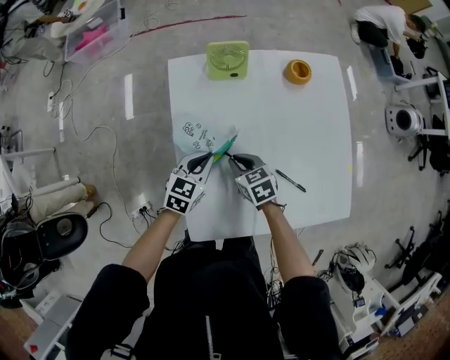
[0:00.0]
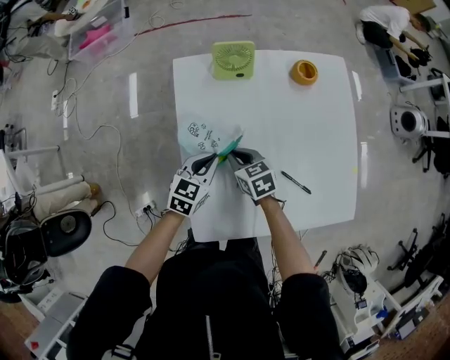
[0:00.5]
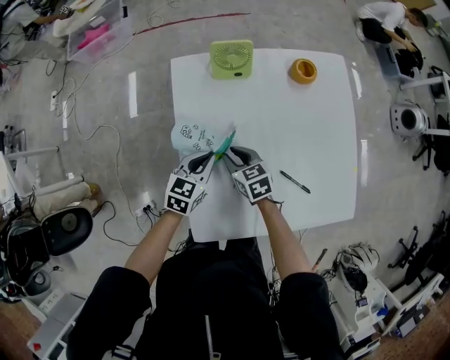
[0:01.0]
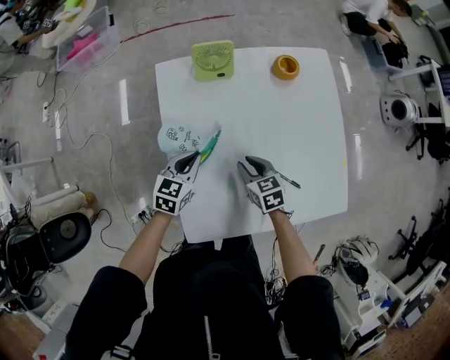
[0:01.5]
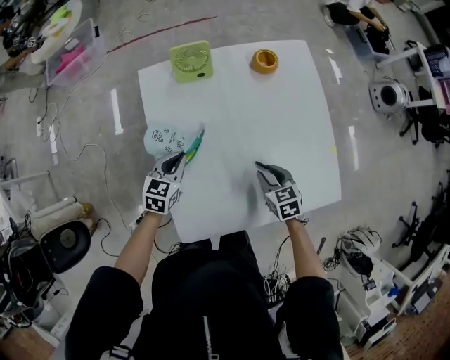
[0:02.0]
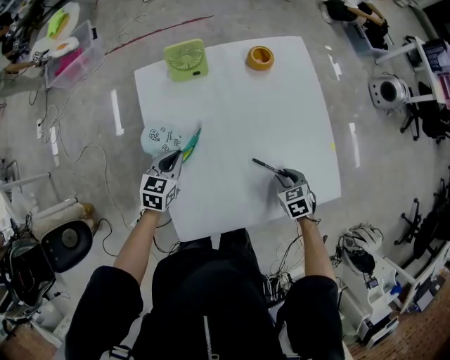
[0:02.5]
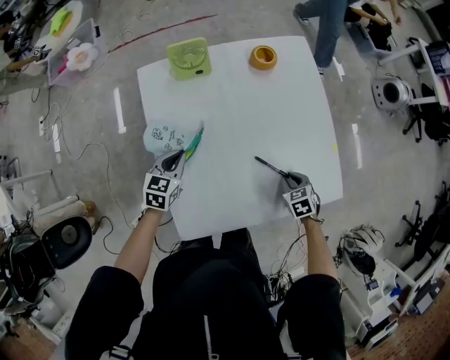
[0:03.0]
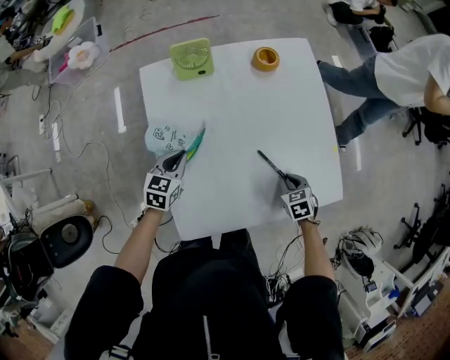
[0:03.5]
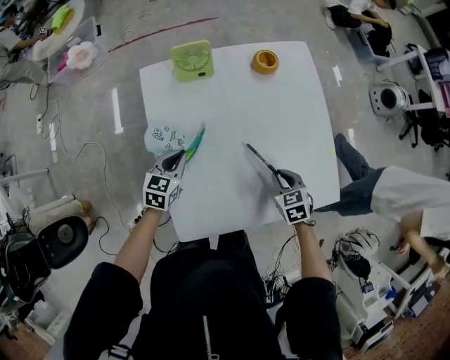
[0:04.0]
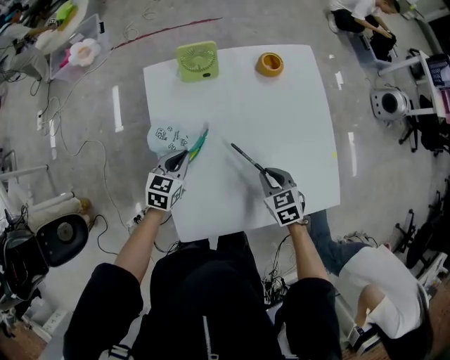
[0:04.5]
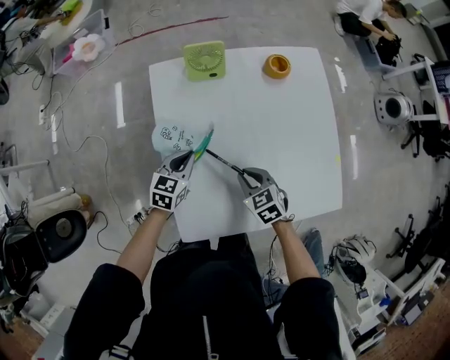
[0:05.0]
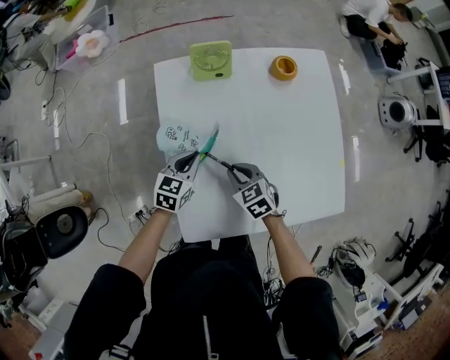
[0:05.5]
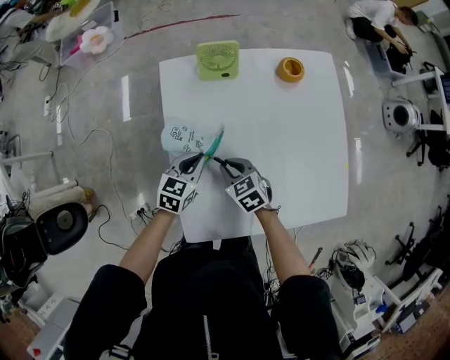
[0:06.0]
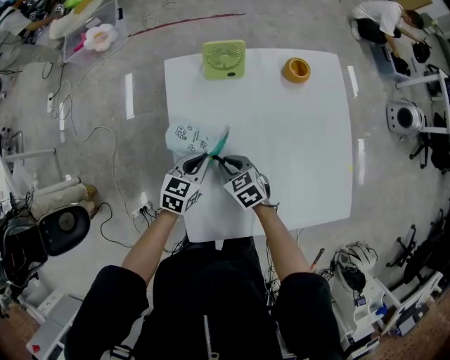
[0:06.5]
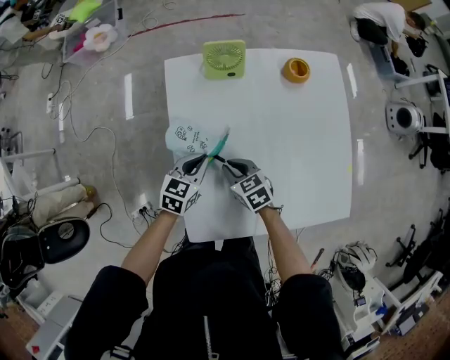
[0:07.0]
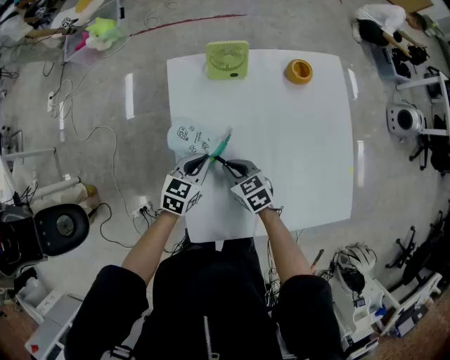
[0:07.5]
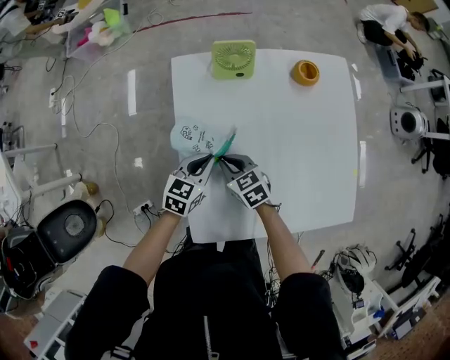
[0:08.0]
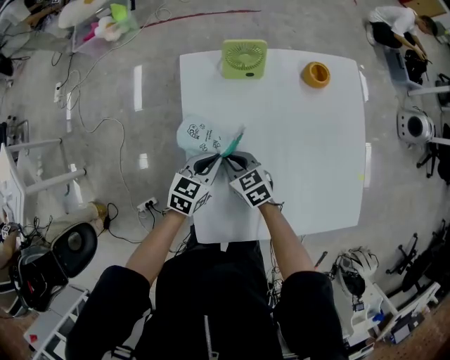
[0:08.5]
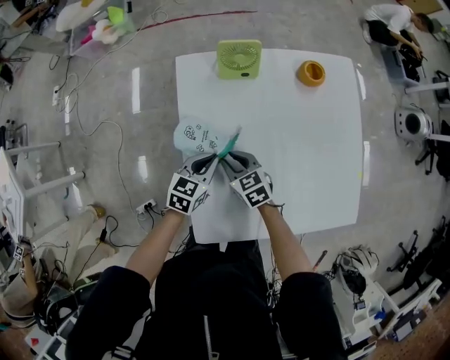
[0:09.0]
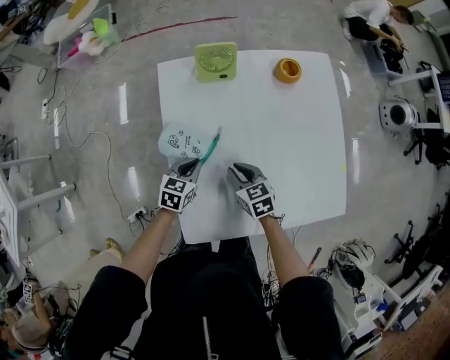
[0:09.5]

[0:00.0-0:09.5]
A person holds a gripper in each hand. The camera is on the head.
0:00.0 to 0:02.0: The right gripper heads to the right and backward, covering approximately 20 cm, and opens its fingers.
0:04.0 to 0:05.5: The right gripper shifts roughly 20 cm to the left.
0:05.5 to 0:07.5: The right gripper goes roughly 5 cm to the left.
0:07.5 to 0:09.5: The grippers make only small movements.

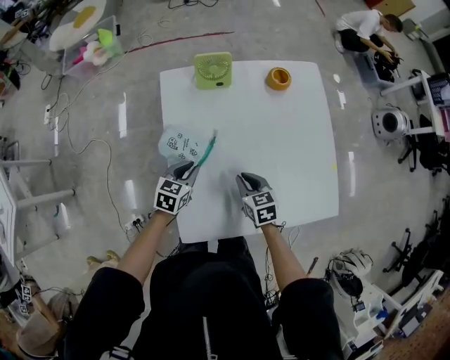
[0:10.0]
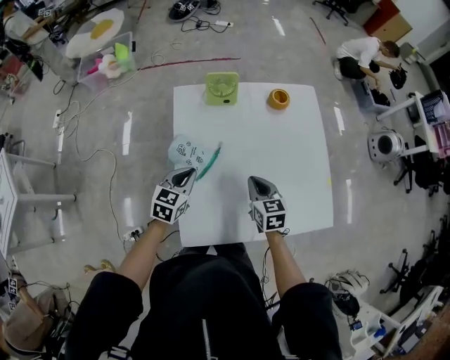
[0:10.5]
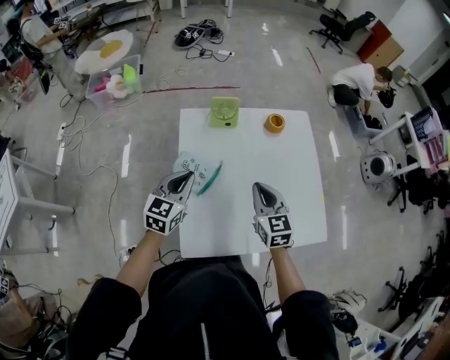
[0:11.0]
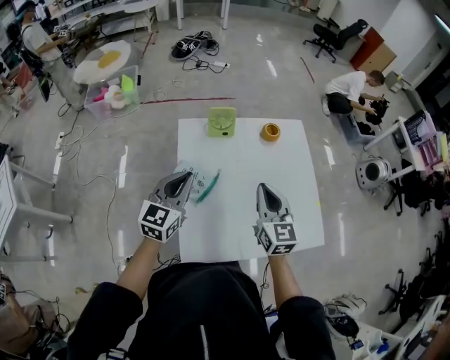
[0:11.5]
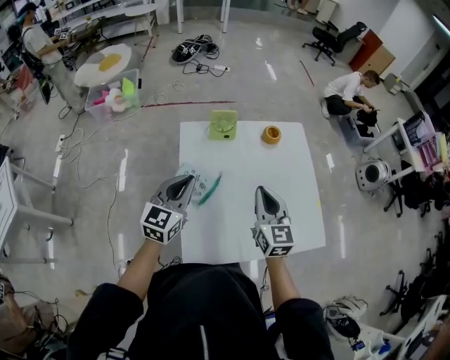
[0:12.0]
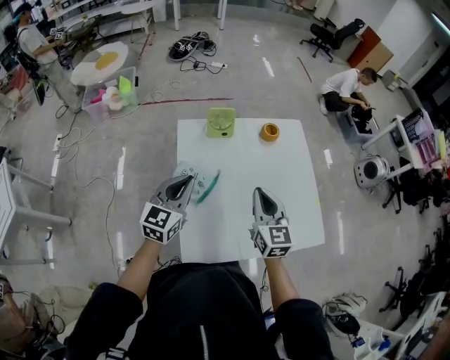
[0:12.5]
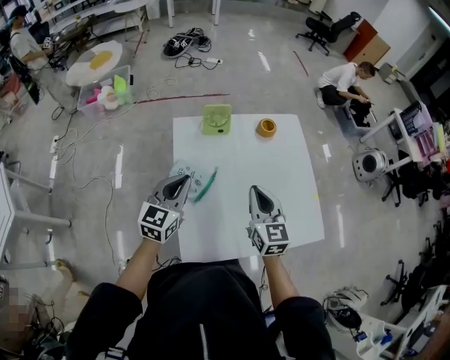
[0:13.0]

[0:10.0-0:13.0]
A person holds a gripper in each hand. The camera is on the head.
0:10.0 to 0:11.5: Both grippers travel together upward, approximately 25 cm. The right gripper angles its fingers upward, by roughly 30 degrees, while the left gripper tips its fingers upward by about 30 degrees.
0:11.5 to 0:13.0: The grippers move only a little.

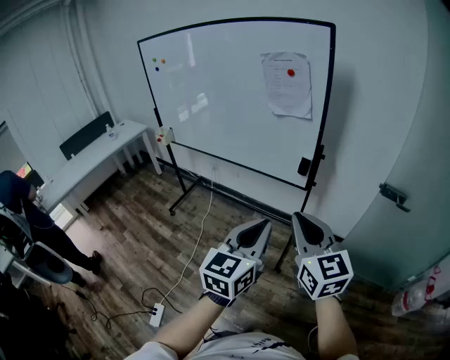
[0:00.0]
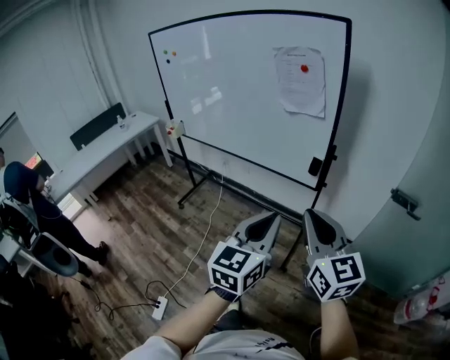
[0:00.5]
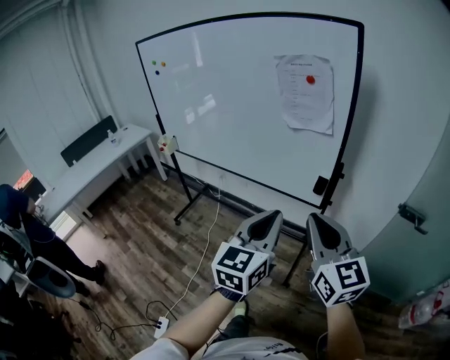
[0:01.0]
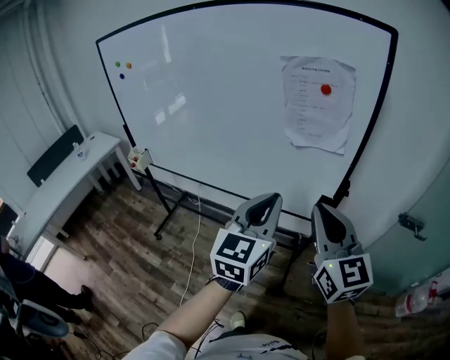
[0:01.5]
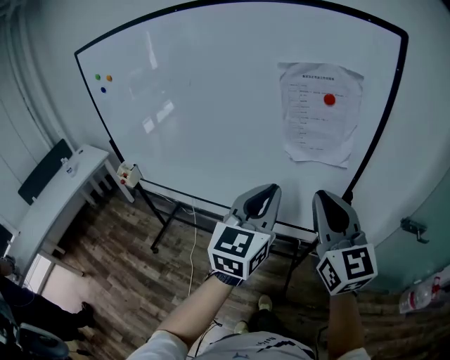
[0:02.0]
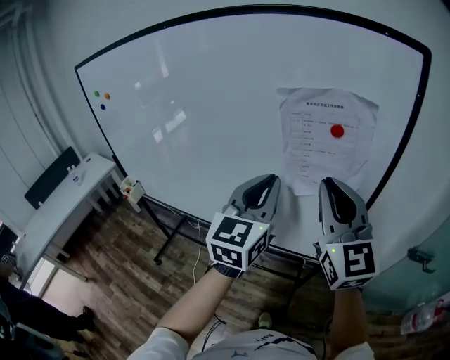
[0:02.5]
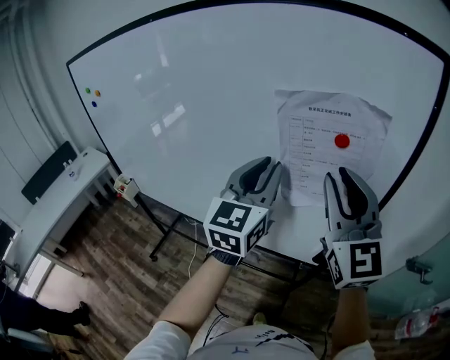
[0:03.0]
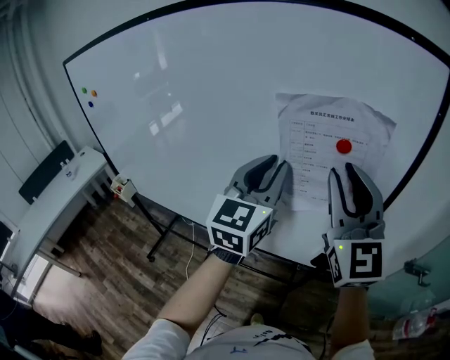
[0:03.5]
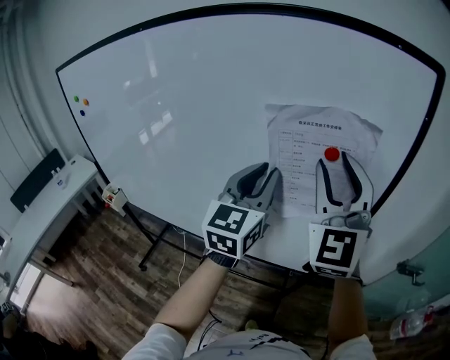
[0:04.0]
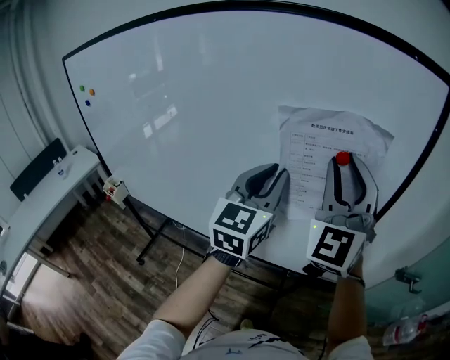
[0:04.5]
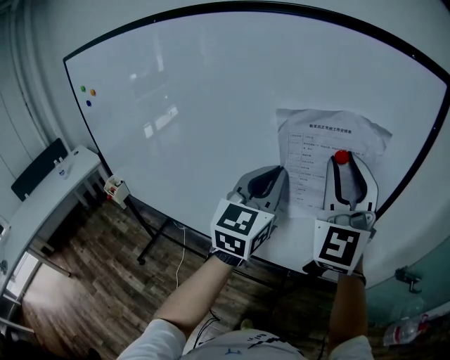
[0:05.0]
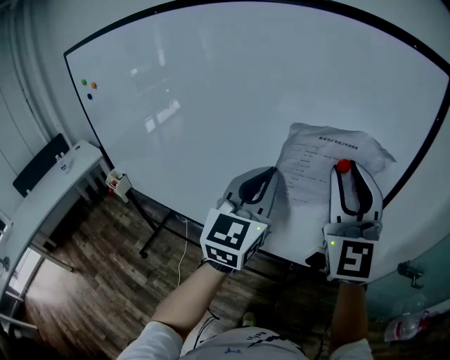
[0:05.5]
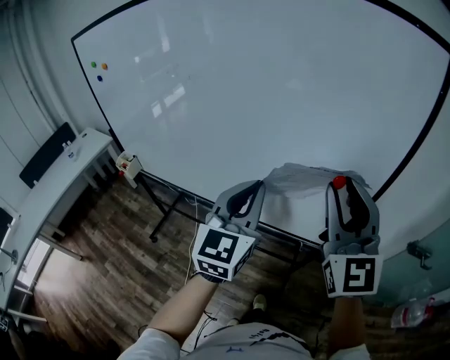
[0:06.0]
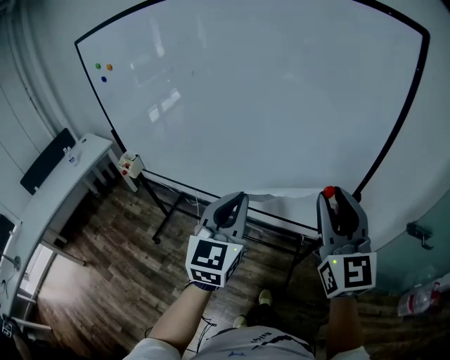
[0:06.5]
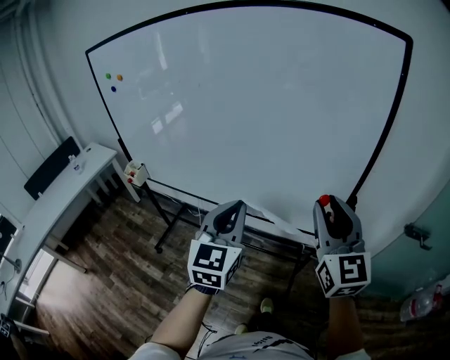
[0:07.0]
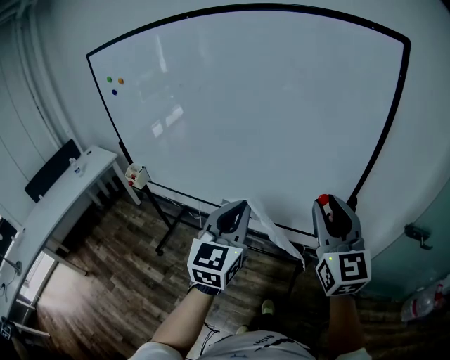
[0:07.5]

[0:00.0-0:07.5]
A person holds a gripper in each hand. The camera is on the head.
0:00.0 to 0:02.0: The two grippers go about 40 cm forward.
0:02.0 to 0:04.0: The left gripper moves forward, roughly 20 cm; the right gripper shifts about 20 cm forward and upward, turns by some 40 degrees, and opens.
0:04.0 to 0:05.5: The grippers make only small movements.
0:05.5 to 0:07.5: The right gripper is displaced backward and downward by about 20 cm, and swivels roughly 20 degrees; the left gripper heads backward, downward and to the left, covering some 20 cm.

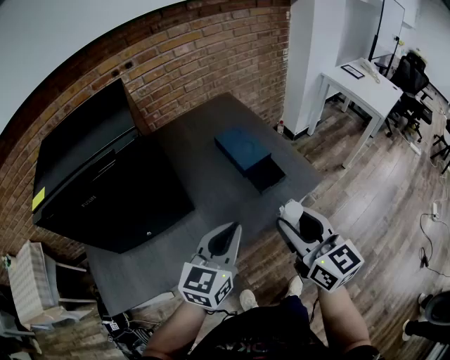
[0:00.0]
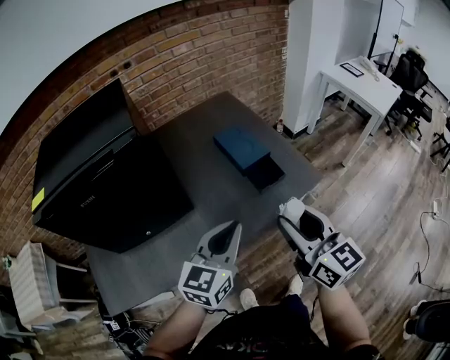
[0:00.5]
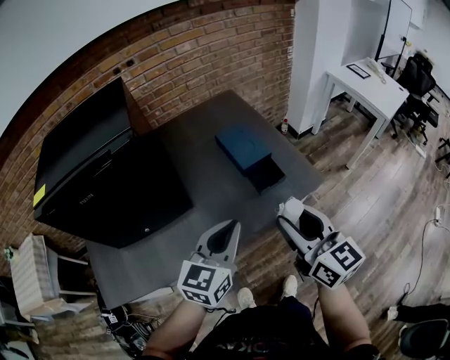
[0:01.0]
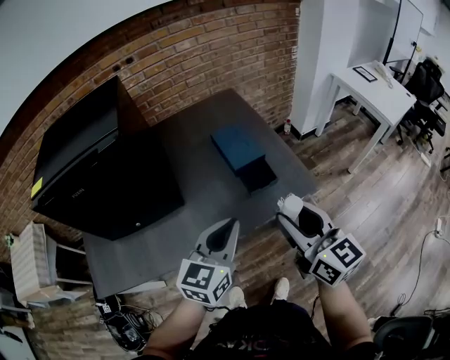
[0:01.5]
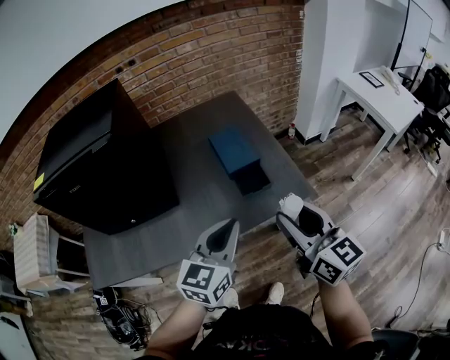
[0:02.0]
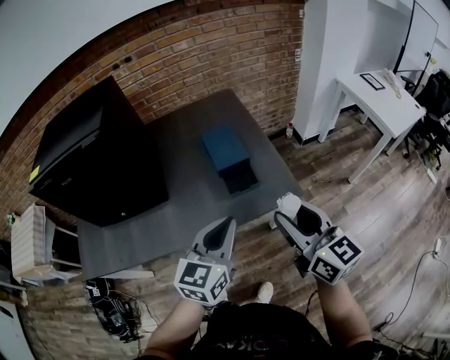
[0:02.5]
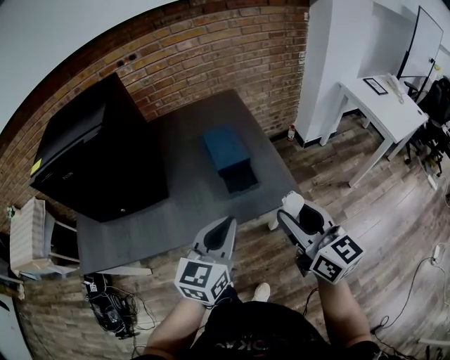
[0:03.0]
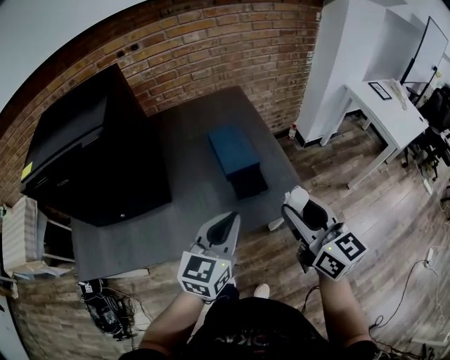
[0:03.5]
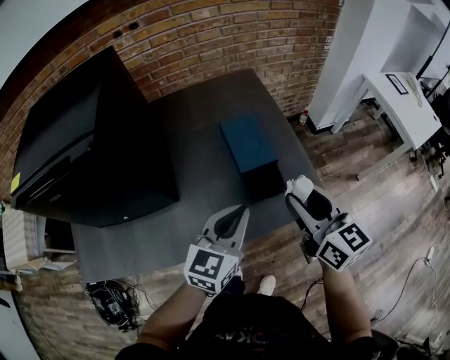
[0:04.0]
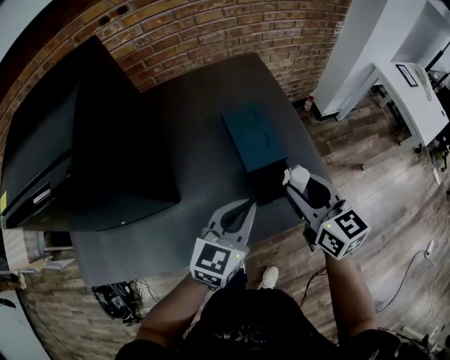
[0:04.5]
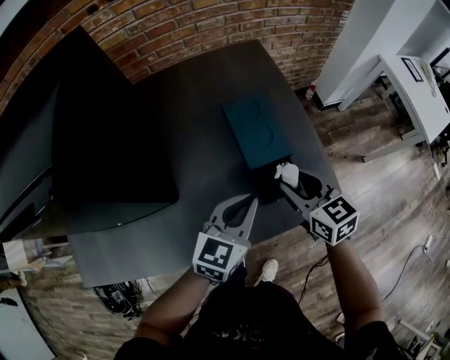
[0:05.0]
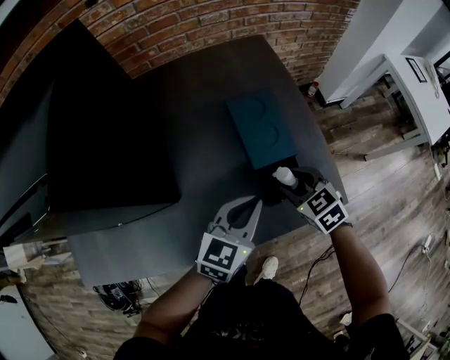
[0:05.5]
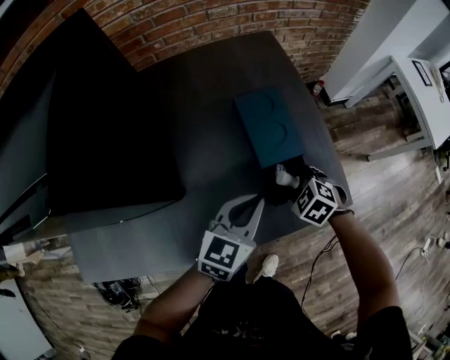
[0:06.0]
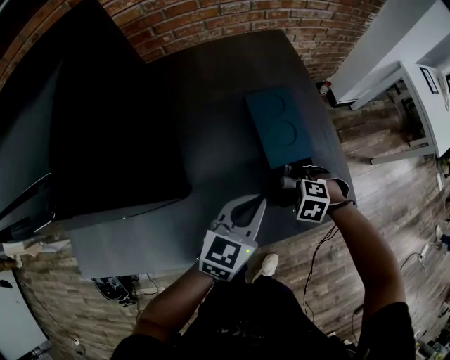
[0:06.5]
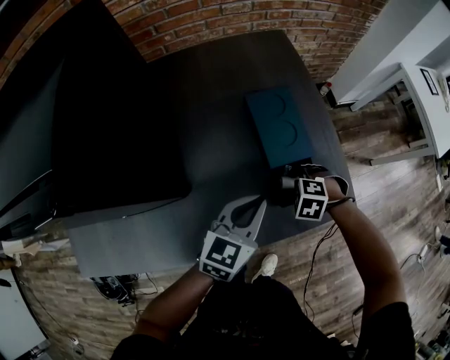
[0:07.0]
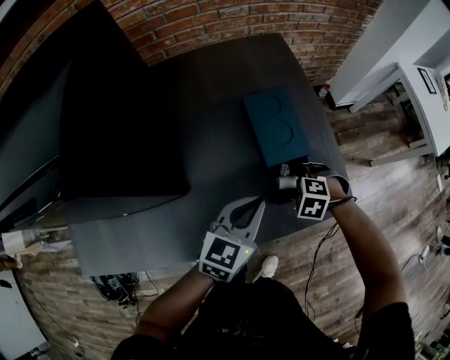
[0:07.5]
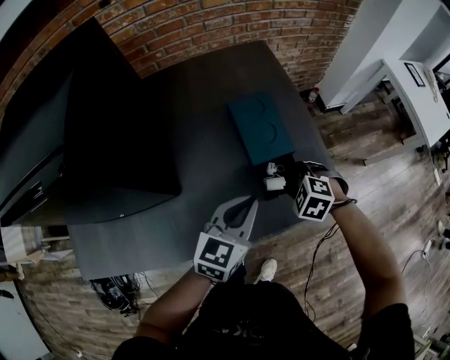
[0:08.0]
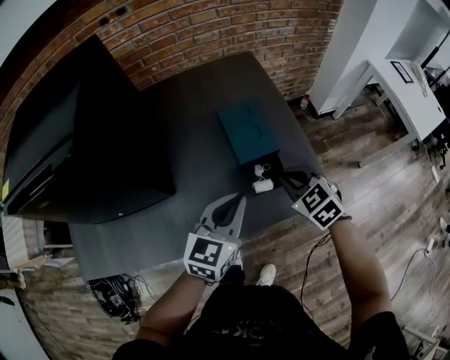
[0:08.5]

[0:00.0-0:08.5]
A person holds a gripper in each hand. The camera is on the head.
0:00.0 to 0:02.0: The two grippers go about 15 cm to the right.
0:02.0 to 0:04.0: Both grippers move forward, approximately 15 cm.
0:04.0 to 0:06.5: The left gripper travels downward by approximately 10 cm. The right gripper goes about 30 cm downward, and angles its fingers downward, by some 70 degrees.
0:06.5 to 0:08.5: The left gripper travels upward by some 5 cm; the right gripper shifts about 15 cm upward, points its fingers approximately 40 degrees further upward, and closes up.
